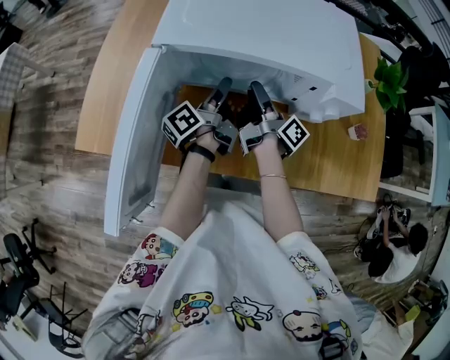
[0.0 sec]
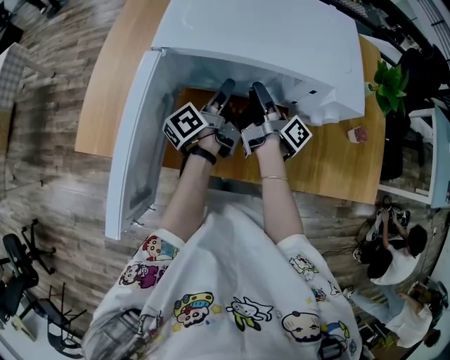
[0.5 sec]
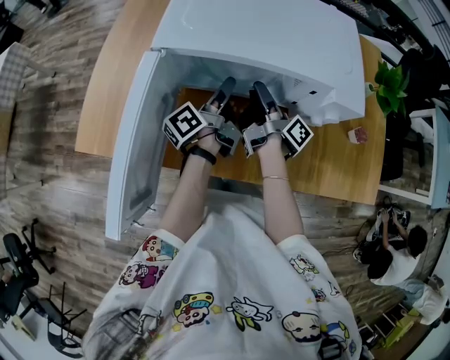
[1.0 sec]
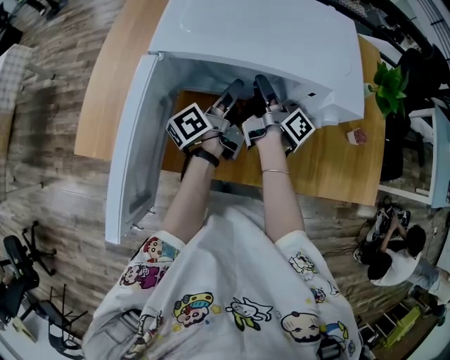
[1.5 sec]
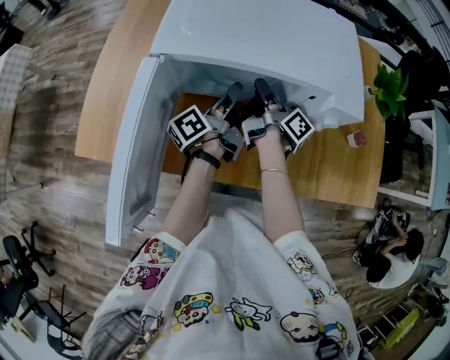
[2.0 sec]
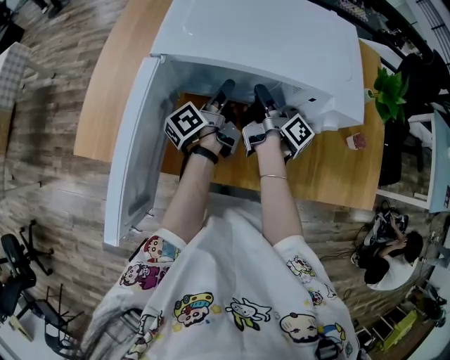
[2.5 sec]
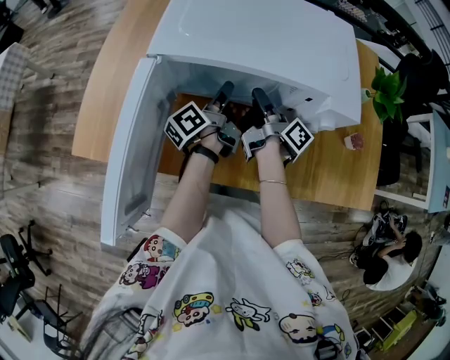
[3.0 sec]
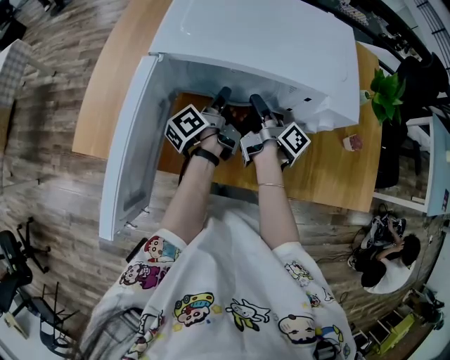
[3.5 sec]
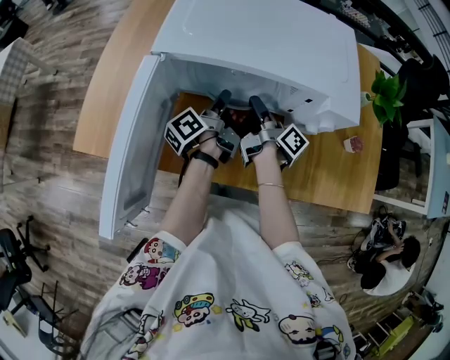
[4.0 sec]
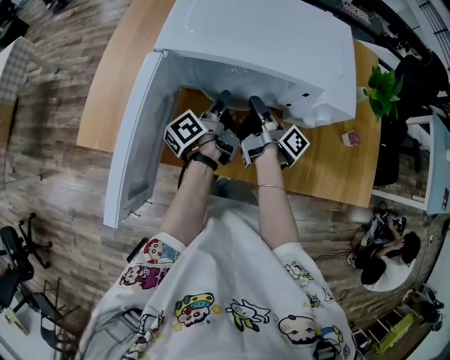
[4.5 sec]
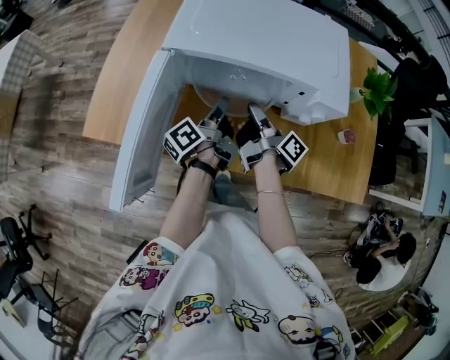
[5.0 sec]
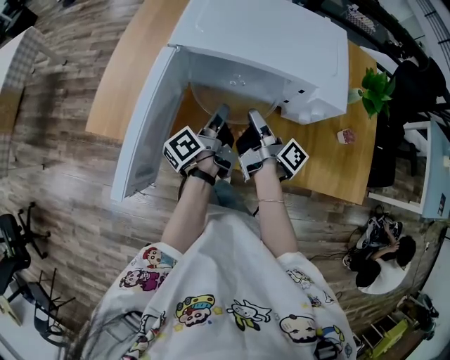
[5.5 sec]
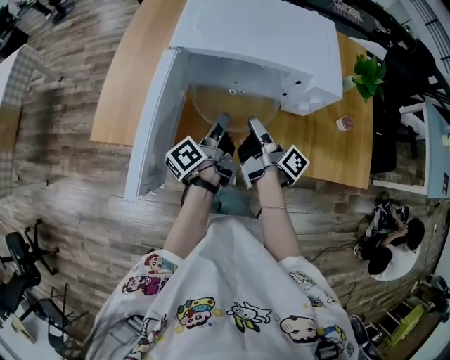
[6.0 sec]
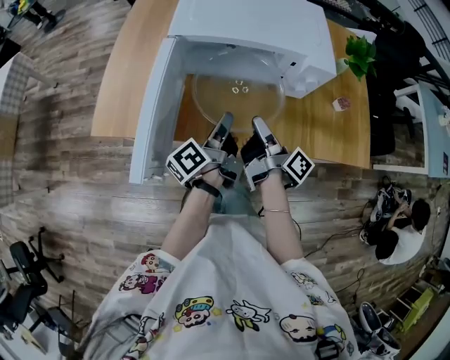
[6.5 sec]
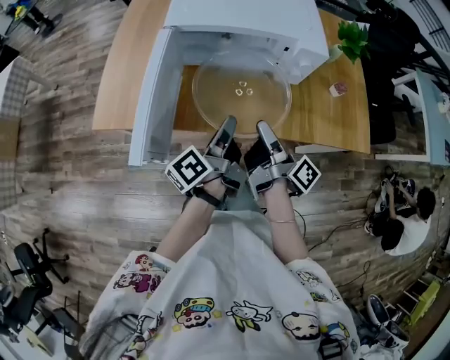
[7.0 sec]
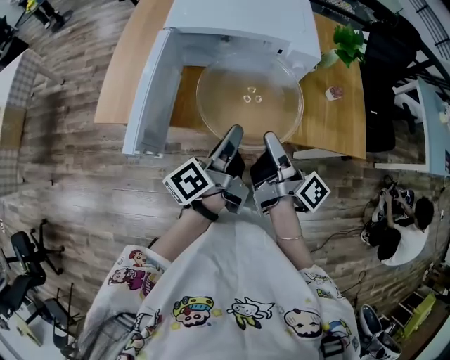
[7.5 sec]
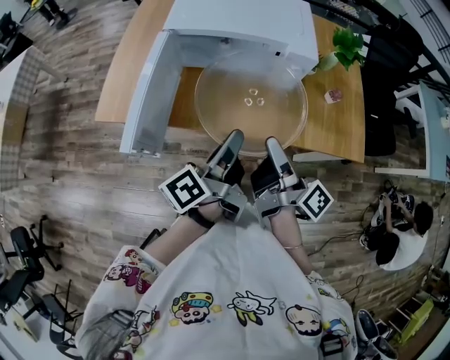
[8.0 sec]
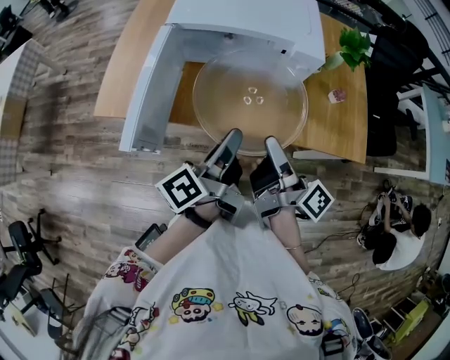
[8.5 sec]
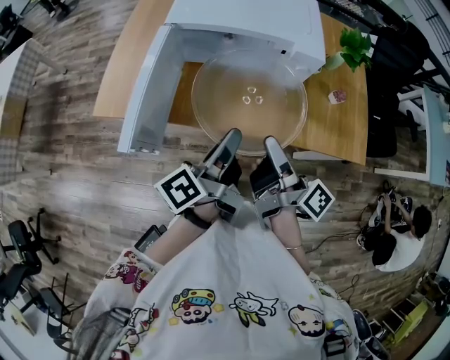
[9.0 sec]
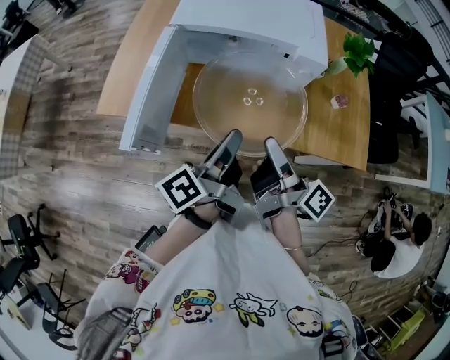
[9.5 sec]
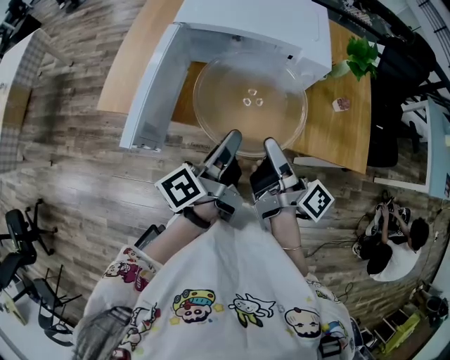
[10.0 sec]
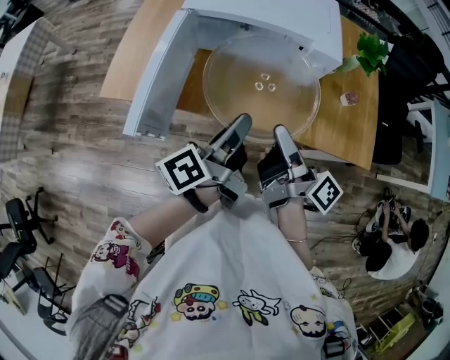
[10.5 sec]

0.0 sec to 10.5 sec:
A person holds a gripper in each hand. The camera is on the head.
0.0 sec to 2.0 sec: The right gripper closes.
2.0 sec to 4.0 sec: The left gripper closes its fingers.
4.0 sec to 6.5 sec: The grippers both shift backward and upward by approximately 20 cm.
6.5 sec to 8.5 sec: The two grippers go approximately 15 cm backward, upward and to the right.
8.5 sec to 10.5 sec: The grippers make only small movements.

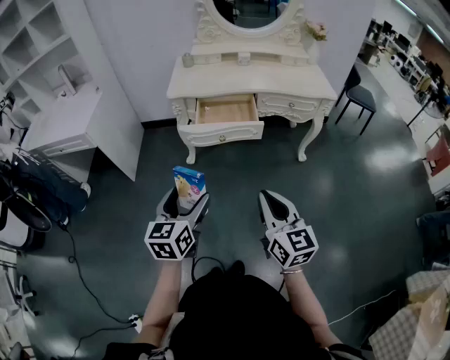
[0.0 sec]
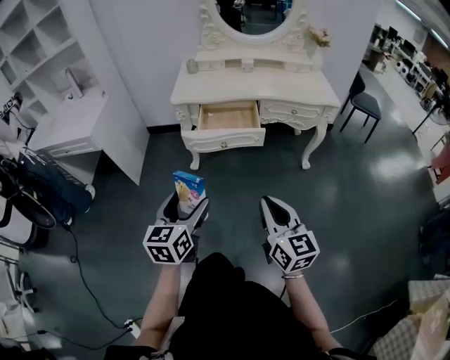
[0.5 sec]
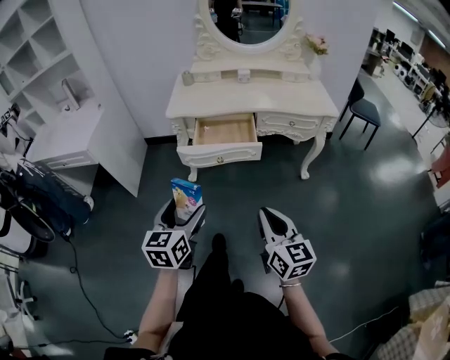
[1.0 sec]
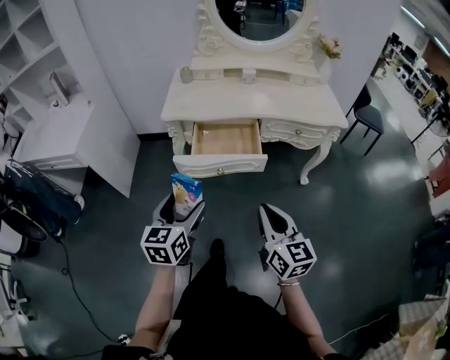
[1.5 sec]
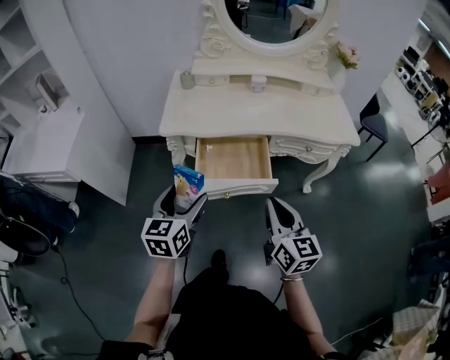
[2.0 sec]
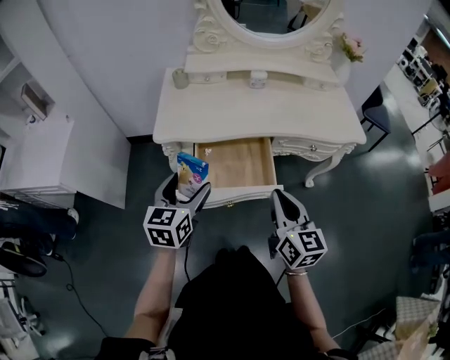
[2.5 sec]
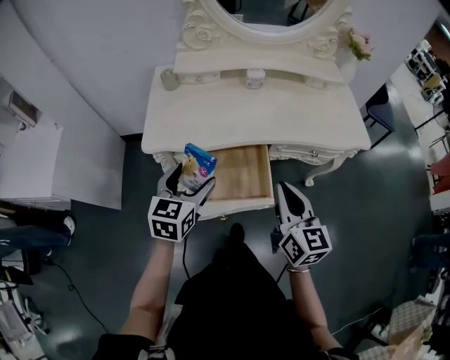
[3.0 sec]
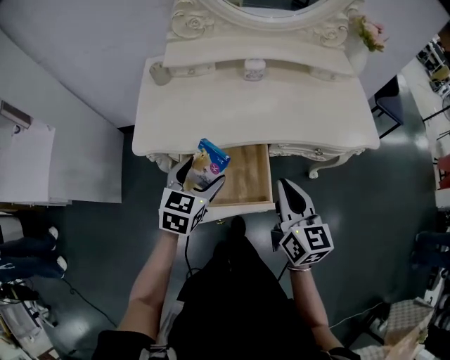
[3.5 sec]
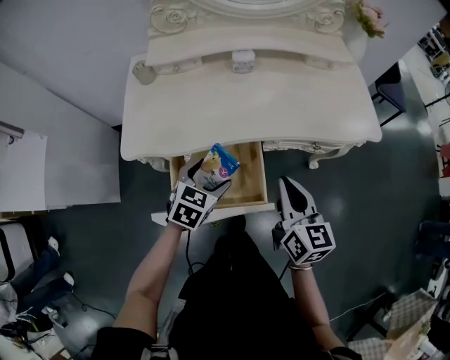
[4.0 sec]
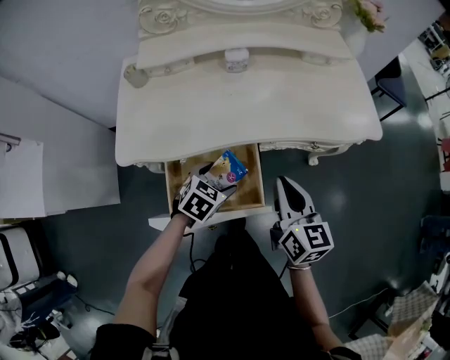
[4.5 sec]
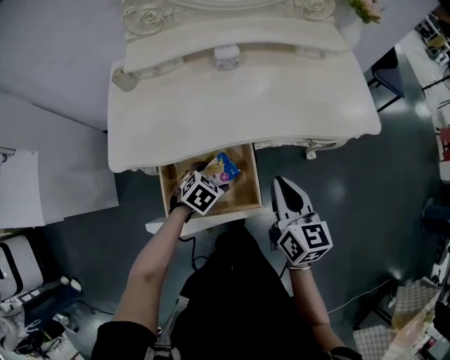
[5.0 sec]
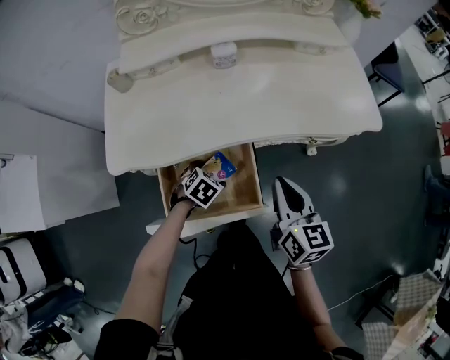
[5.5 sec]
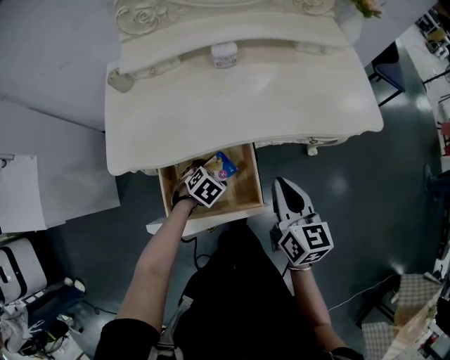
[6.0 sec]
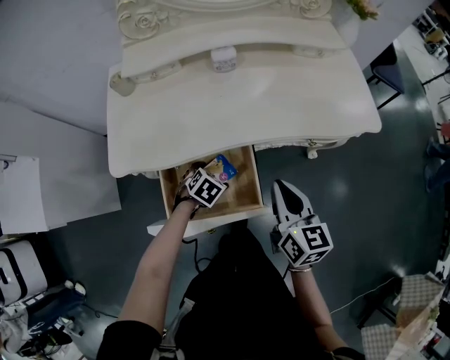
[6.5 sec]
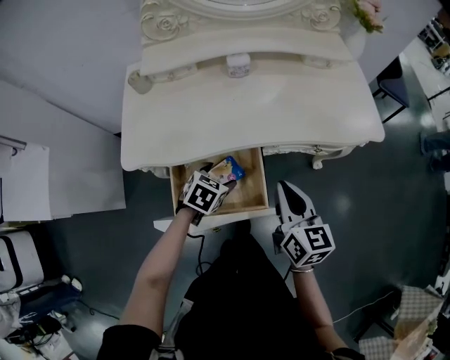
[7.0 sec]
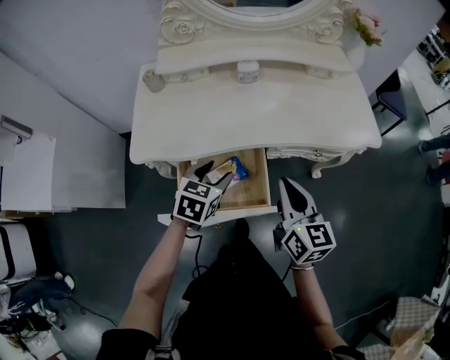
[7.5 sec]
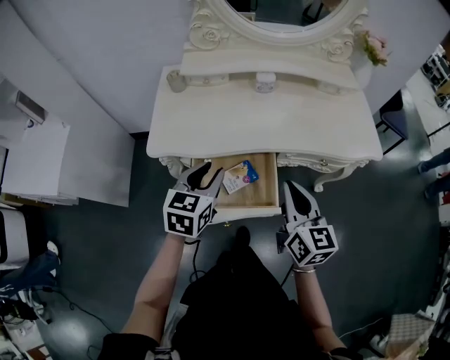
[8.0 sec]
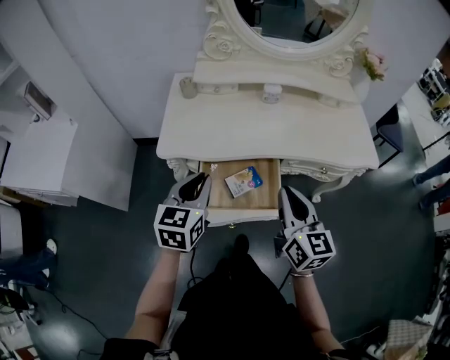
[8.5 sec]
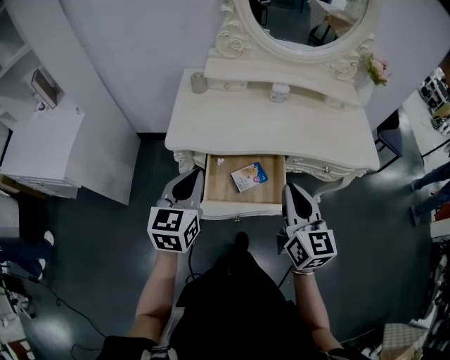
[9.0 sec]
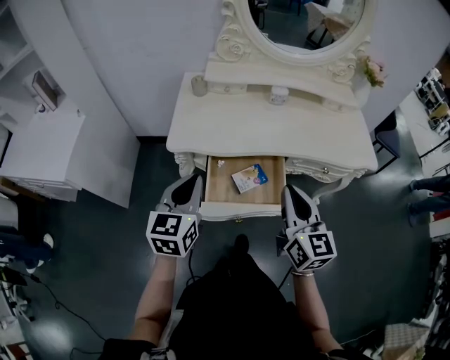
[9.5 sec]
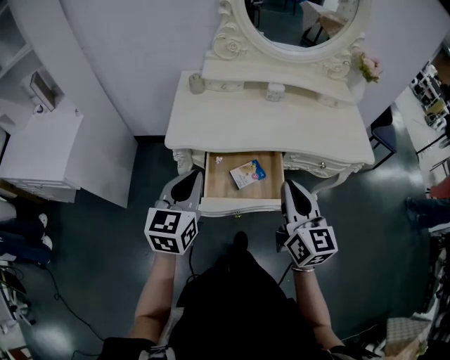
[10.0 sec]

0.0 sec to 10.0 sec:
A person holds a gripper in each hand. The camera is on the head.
0.0 sec to 2.0 sec: The grippers both shift forward by about 30 cm.
2.0 sec to 4.0 sec: The left gripper goes some 30 cm forward, to the right and downward, and turns by about 40 degrees. The right gripper is displaced forward by about 20 cm.
4.0 sec to 6.0 sec: The left gripper goes roughly 15 cm downward, and rotates roughly 30 degrees.
6.0 sec to 8.0 sec: The right gripper heads upward, covering about 10 cm, while the left gripper goes some 25 cm upward, angles its fingers upward, by some 40 degrees, and closes up.
8.0 sec to 10.0 sec: Both grippers move to the left, backward and upward, approximately 15 cm.

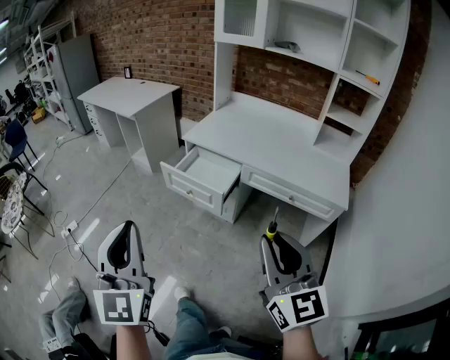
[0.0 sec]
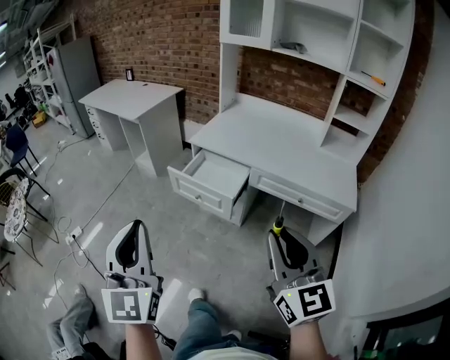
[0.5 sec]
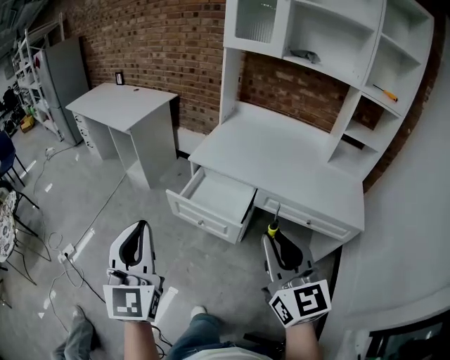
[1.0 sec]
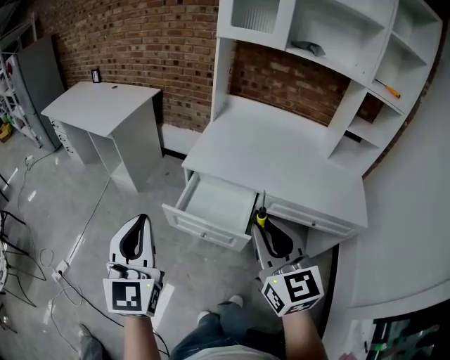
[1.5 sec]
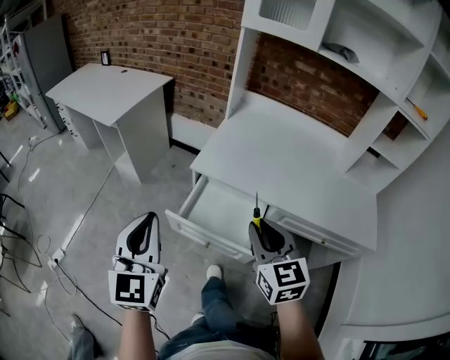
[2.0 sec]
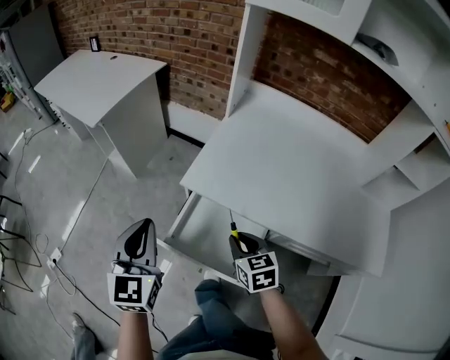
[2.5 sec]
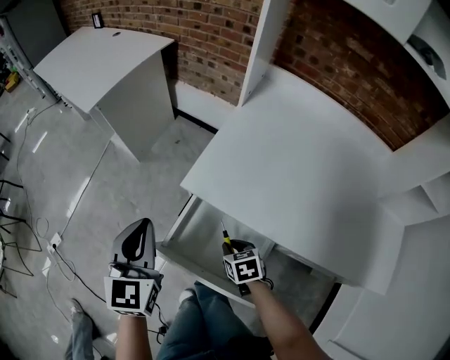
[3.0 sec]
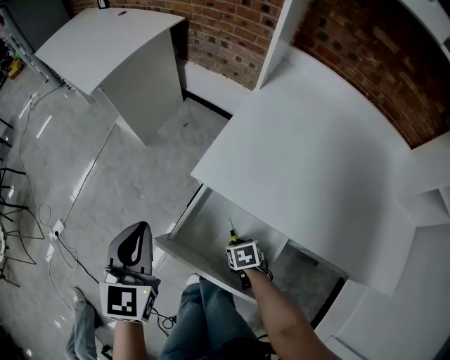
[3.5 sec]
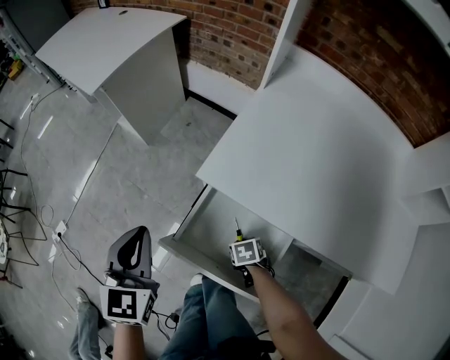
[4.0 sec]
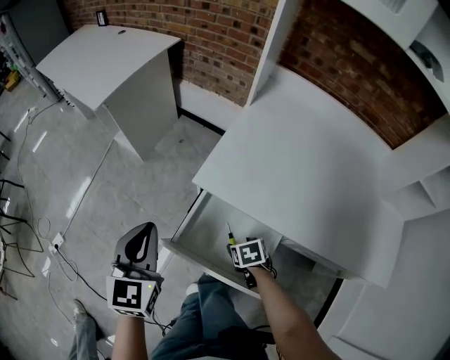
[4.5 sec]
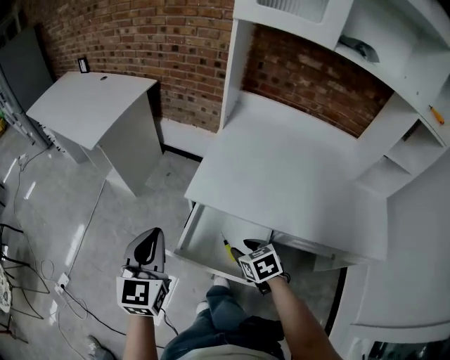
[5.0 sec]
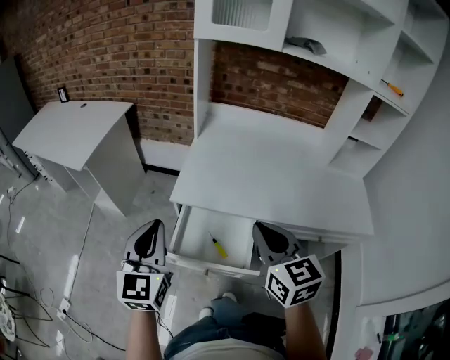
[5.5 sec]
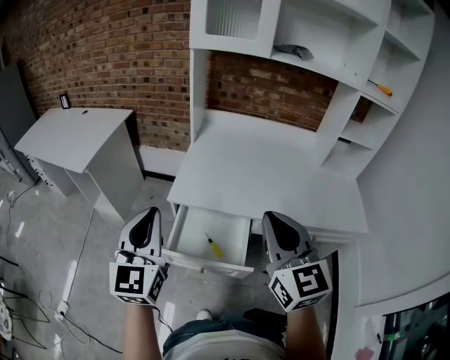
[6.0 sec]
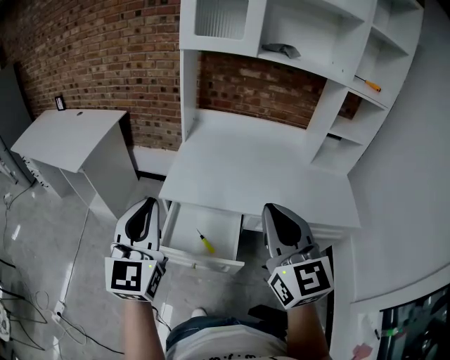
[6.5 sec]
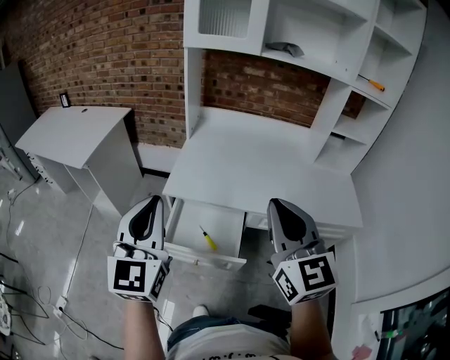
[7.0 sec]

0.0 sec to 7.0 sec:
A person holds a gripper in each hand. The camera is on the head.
0.0 sec to 2.0 sec: The pair of grippers is taken forward, approximately 50 cm.
2.0 sec to 3.5 sec: The left gripper goes about 25 cm forward and downward, and rotates some 20 degrees. Meanwhile the right gripper shifts some 40 cm downward, and angles its fingers downward, by about 60 degrees.
3.5 sec to 5.0 sec: The left gripper shifts approximately 10 cm upward. The right gripper moves upward, roughly 20 cm, changes its angle by about 20 degrees, and opens up.
5.0 sec to 7.0 sec: The left gripper moves upward, to the right and backward, some 20 cm, and rotates about 20 degrees. Meanwhile the right gripper travels upward by roughly 35 cm, angles its fingers upward, by some 60 degrees, and closes.
